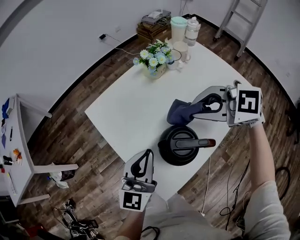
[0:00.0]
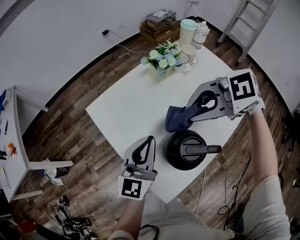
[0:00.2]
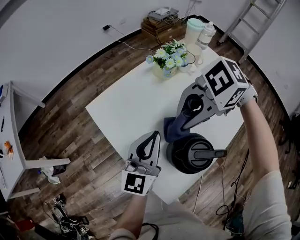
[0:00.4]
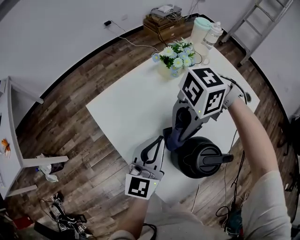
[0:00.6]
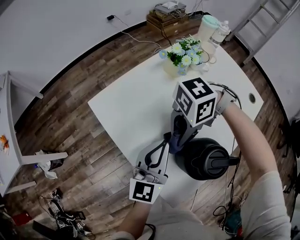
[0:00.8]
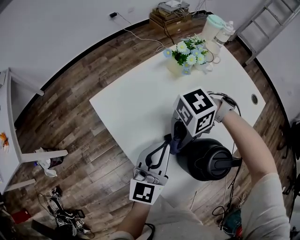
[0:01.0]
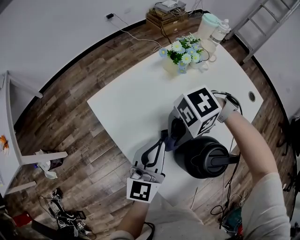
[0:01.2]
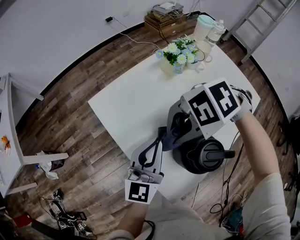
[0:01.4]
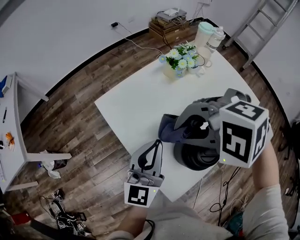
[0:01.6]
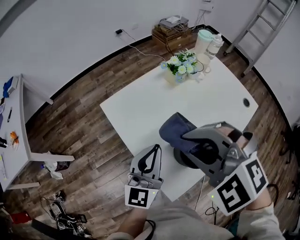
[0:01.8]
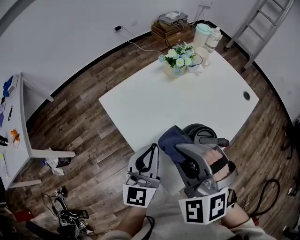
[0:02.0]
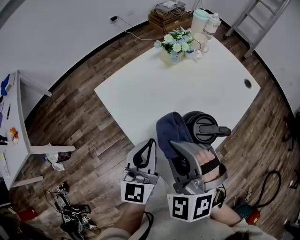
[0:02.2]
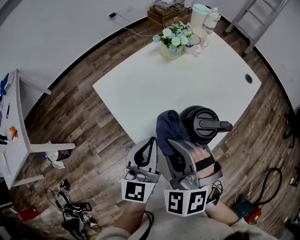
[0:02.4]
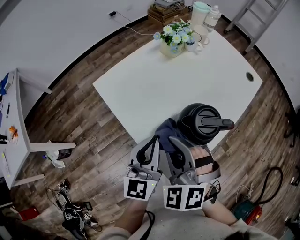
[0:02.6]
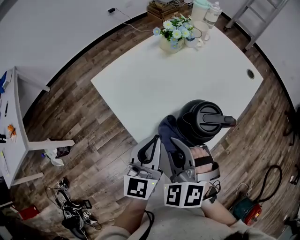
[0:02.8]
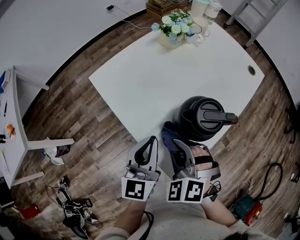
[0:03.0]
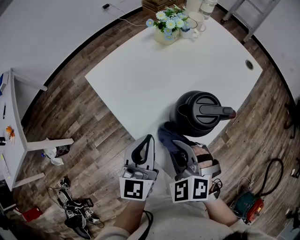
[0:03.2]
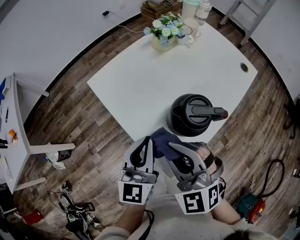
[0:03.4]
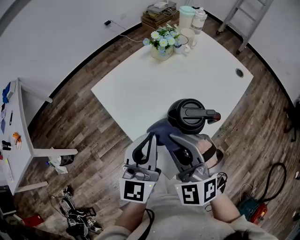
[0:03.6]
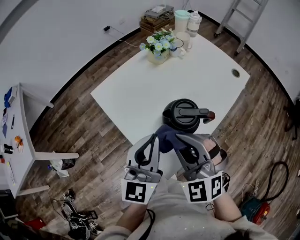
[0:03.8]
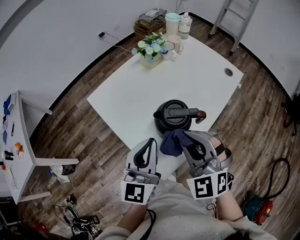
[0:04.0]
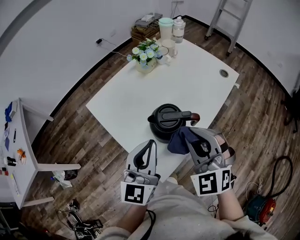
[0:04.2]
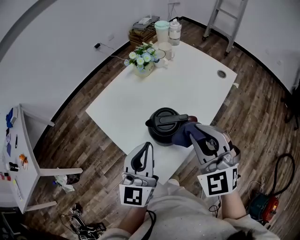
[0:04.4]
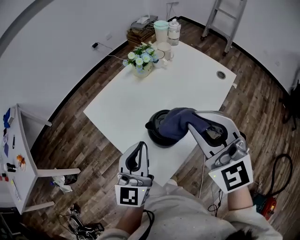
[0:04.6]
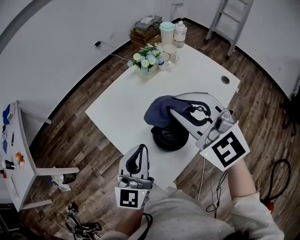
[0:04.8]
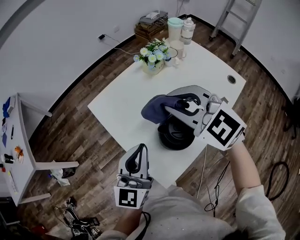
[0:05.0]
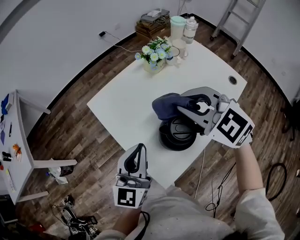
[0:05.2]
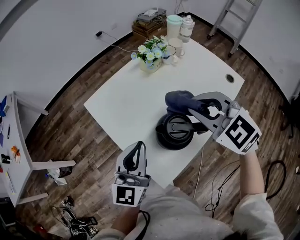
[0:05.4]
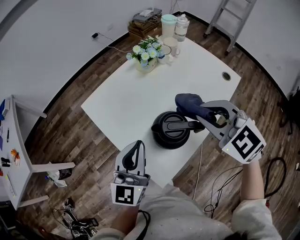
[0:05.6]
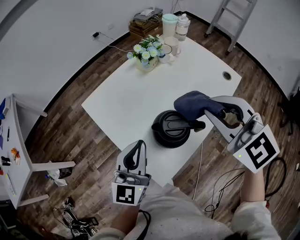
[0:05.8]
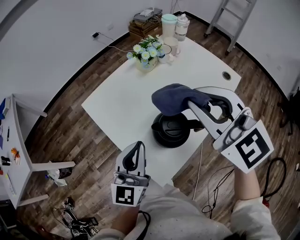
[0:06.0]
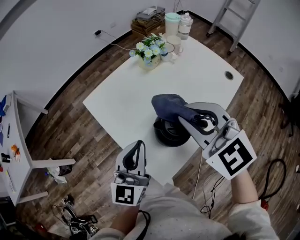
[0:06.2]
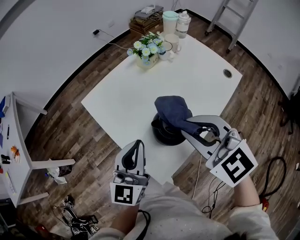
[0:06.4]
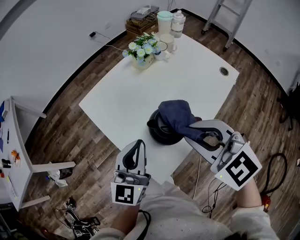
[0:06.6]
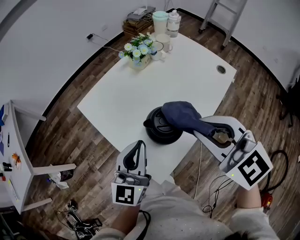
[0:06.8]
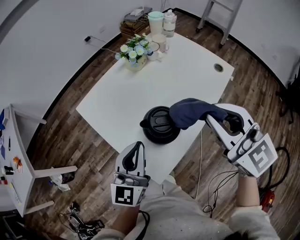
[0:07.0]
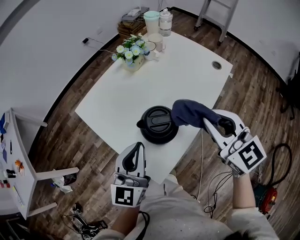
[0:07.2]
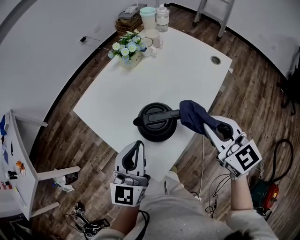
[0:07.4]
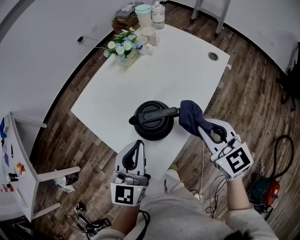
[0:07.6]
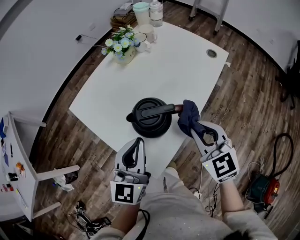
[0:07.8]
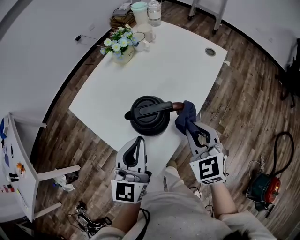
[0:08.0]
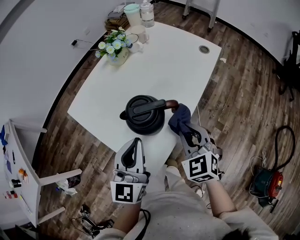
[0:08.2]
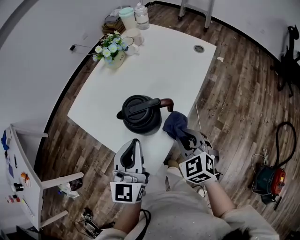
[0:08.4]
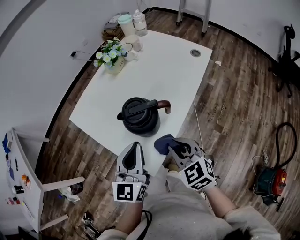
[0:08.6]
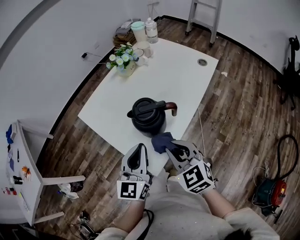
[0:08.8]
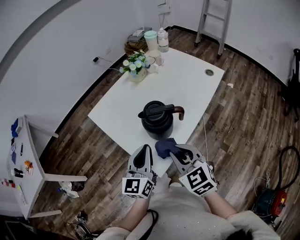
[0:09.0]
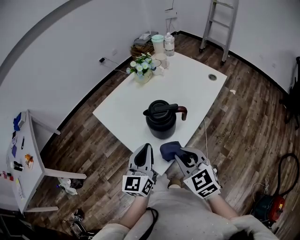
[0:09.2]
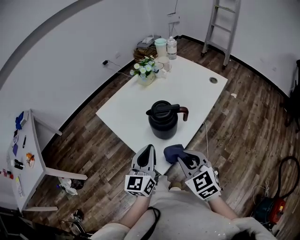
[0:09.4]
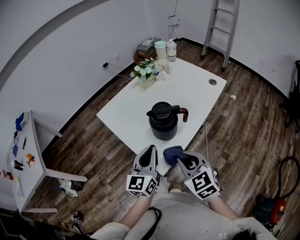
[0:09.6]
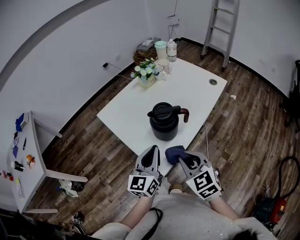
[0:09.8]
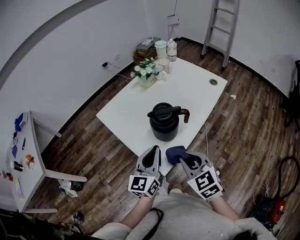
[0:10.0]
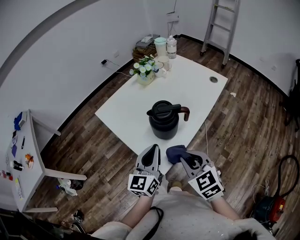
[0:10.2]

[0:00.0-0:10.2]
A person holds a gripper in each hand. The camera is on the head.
0.0 to 1.4 s: The left gripper shifts by some 10 cm, while the right gripper ends up approximately 15 cm from where it was, and swivels some 50 degrees.
1.4 to 3.0 s: The left gripper travels upward and back again, about 5 cm each way; the right gripper changes place by approximately 15 cm, and changes its angle by some 80 degrees.
3.0 to 4.4 s: The left gripper travels upward and to the right by about 15 cm; the right gripper is displaced upward and to the right by some 25 cm, and points its fingers some 30 degrees further upward.
4.4 to 5.8 s: The right gripper travels forward and upward by approximately 10 cm, and swivels approximately 20 degrees, while the left gripper moves roughly 5 cm.
5.8 to 7.2 s: The right gripper travels to the right, downward and backward by approximately 10 cm, and rotates roughly 20 degrees.
7.2 to 8.8 s: The right gripper travels backward, downward and to the left by some 15 cm. The left gripper shifts approximately 5 cm backward.
8.8 to 10.2 s: The right gripper shifts some 5 cm backward.

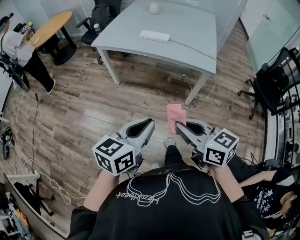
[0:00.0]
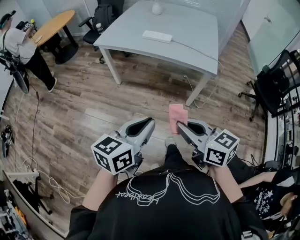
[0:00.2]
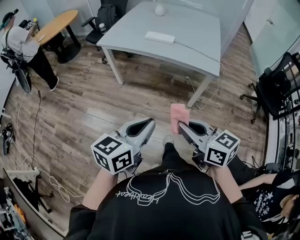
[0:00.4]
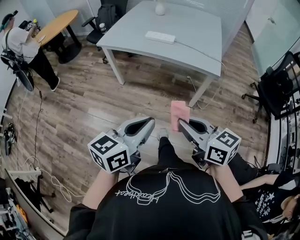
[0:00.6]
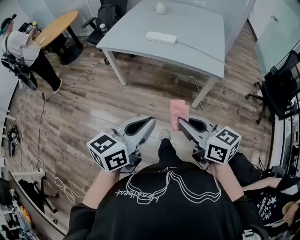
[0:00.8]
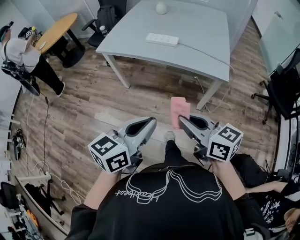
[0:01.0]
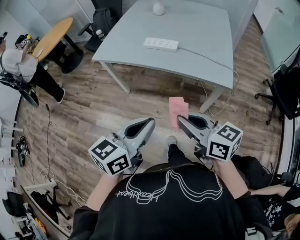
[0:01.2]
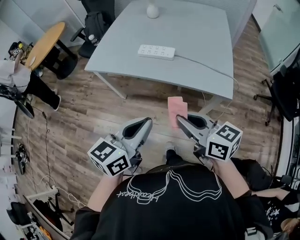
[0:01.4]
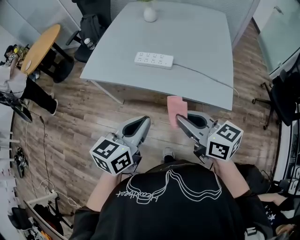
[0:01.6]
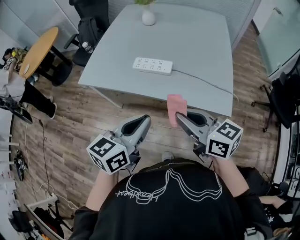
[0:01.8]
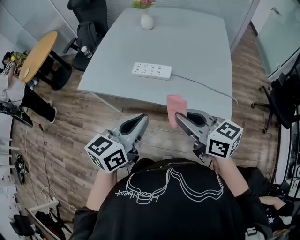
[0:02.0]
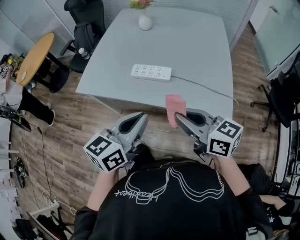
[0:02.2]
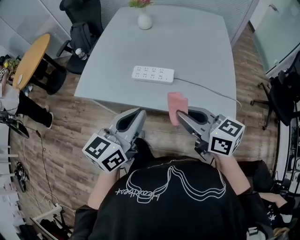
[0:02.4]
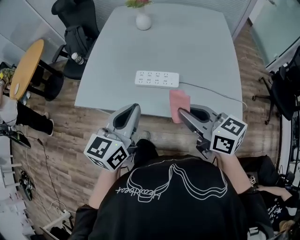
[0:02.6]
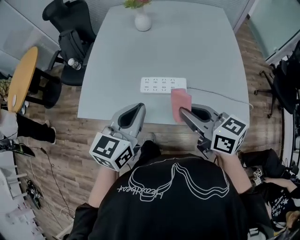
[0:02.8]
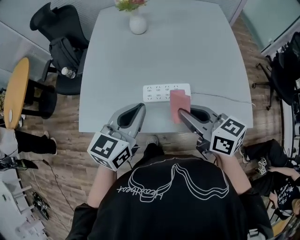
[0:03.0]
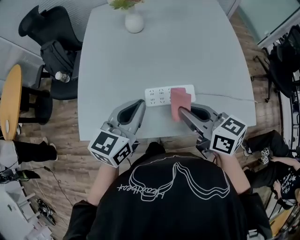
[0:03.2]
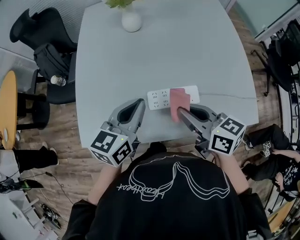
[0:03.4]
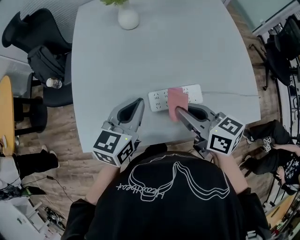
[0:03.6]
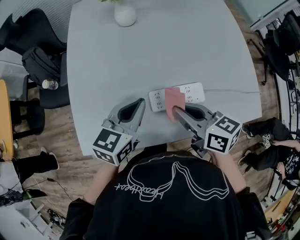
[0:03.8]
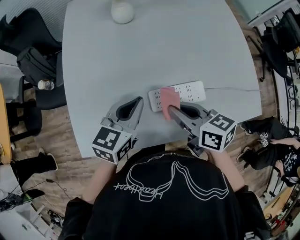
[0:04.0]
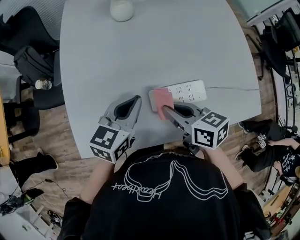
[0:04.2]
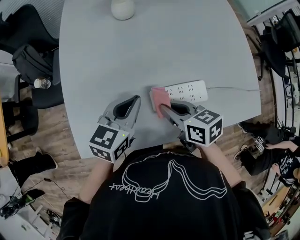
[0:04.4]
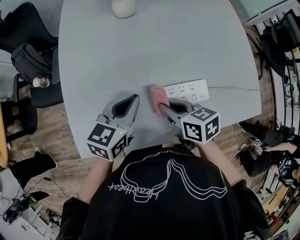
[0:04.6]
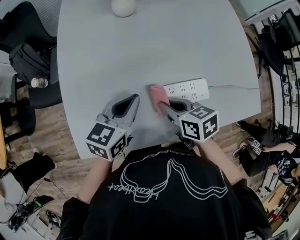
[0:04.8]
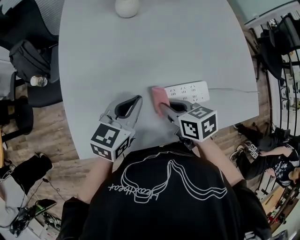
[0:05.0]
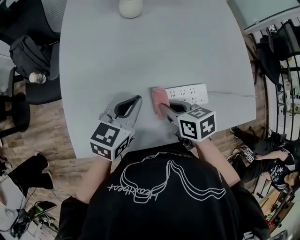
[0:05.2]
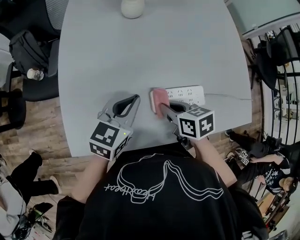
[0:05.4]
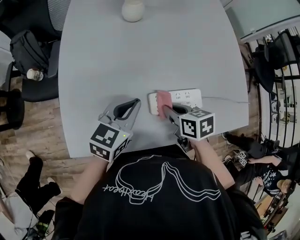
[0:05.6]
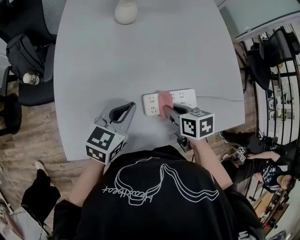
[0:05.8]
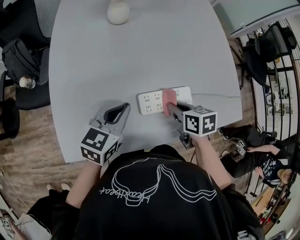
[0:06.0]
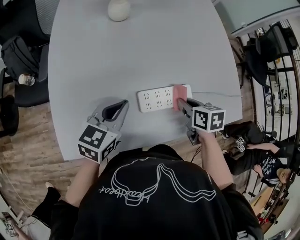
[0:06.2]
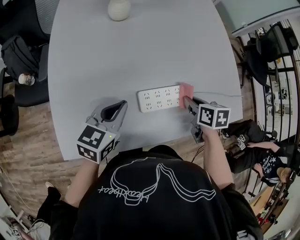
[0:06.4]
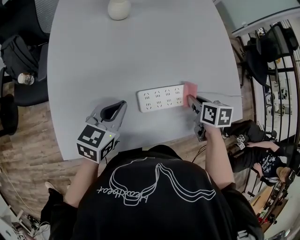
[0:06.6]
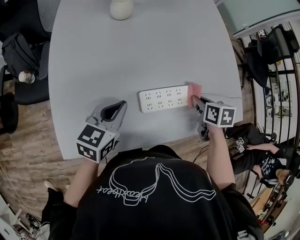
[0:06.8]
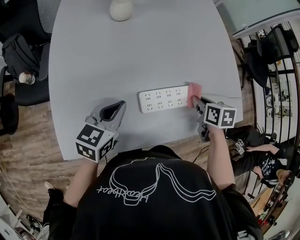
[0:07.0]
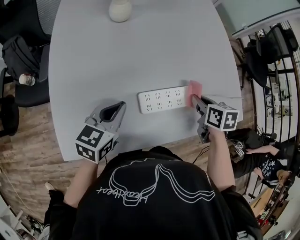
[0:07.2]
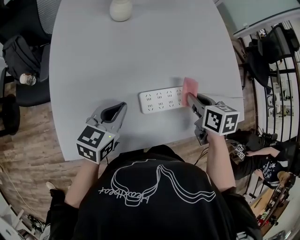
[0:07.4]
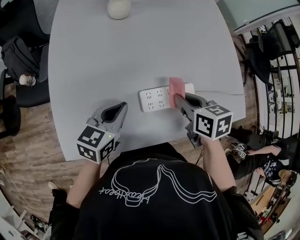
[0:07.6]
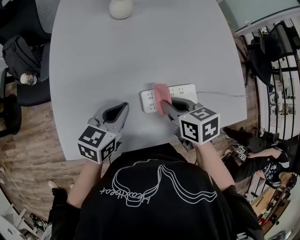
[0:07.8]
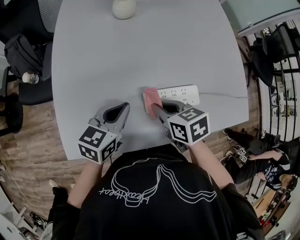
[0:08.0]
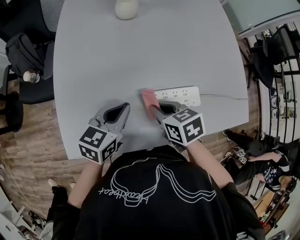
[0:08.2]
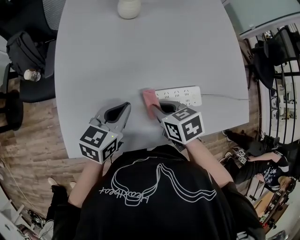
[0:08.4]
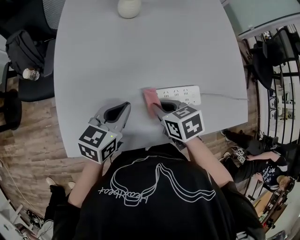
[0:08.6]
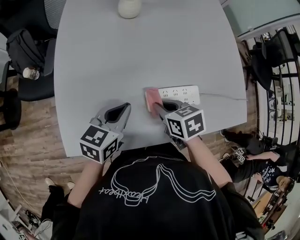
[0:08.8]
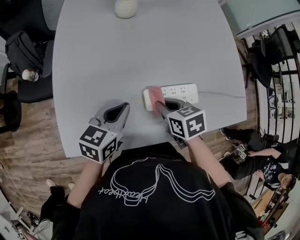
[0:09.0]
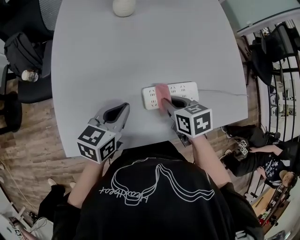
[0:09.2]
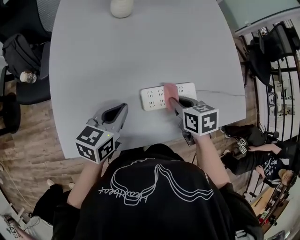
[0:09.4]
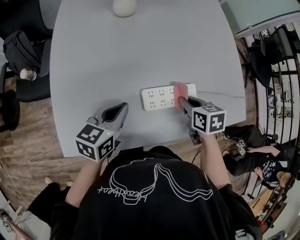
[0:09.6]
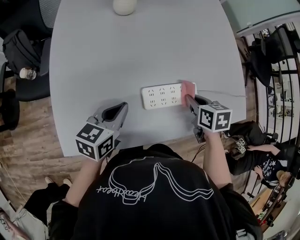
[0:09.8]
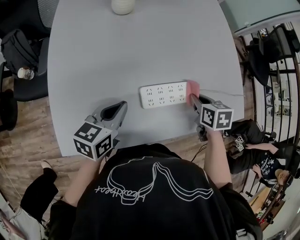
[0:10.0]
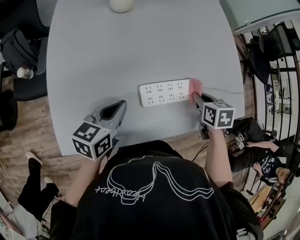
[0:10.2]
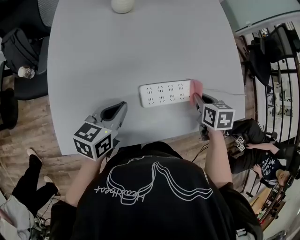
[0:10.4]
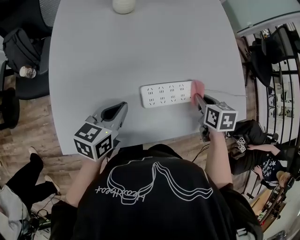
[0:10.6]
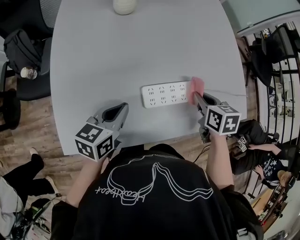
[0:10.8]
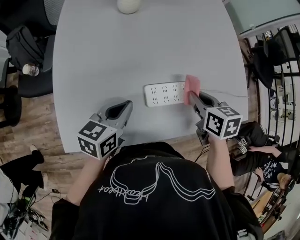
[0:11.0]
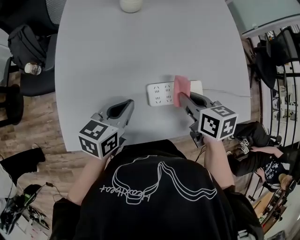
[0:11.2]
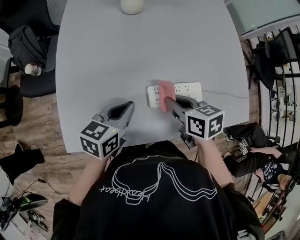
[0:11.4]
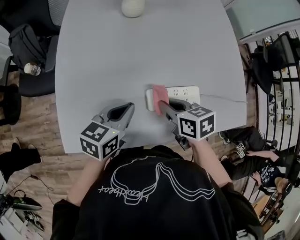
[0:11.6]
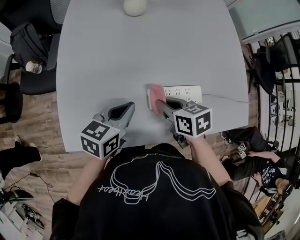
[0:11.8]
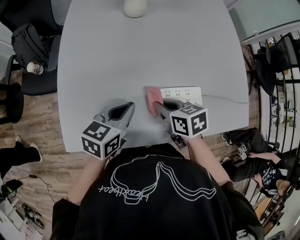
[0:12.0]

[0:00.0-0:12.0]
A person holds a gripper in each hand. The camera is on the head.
0.0 to 1.6 s: Both grippers travel together forward, some 35 cm.
1.6 to 3.0 s: The grippers both shift forward by some 30 cm.
3.0 to 4.4 s: The right gripper shifts some 20 cm downward, forward and to the left, and rotates approximately 20 degrees, while the left gripper is displaced forward, downward and to the left by about 20 cm.
4.4 to 6.0 s: The right gripper heads to the right, covering roughly 10 cm, and changes its angle by approximately 20 degrees.
6.0 to 7.6 s: The right gripper goes roughly 5 cm upward, and travels to the right and back again, approximately 10 cm each way.
7.6 to 9.0 s: The right gripper travels to the left and downward by some 10 cm.
9.0 to 10.4 s: The right gripper heads to the right, covering about 15 cm, and turns by approximately 20 degrees.
10.4 to 12.0 s: The right gripper is displaced to the left by about 20 cm, and changes its angle by approximately 30 degrees.

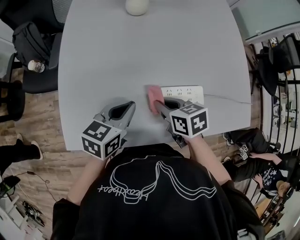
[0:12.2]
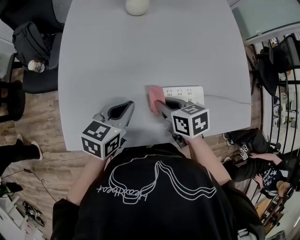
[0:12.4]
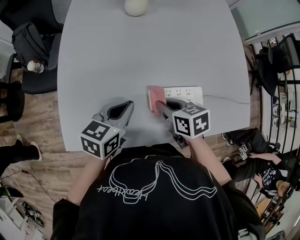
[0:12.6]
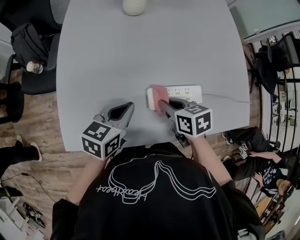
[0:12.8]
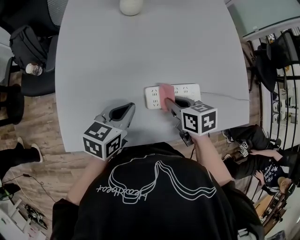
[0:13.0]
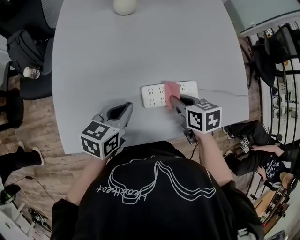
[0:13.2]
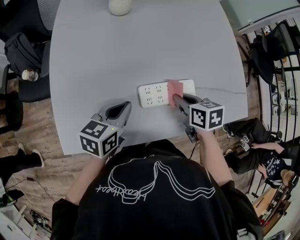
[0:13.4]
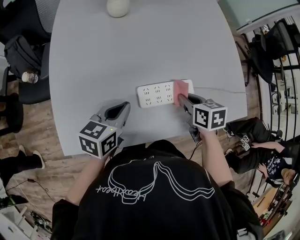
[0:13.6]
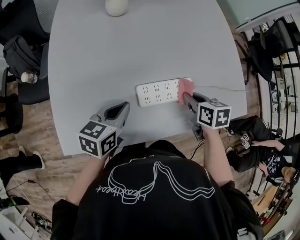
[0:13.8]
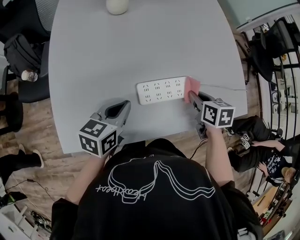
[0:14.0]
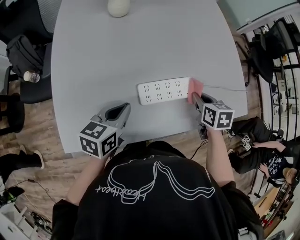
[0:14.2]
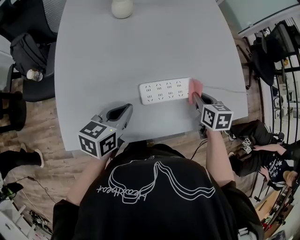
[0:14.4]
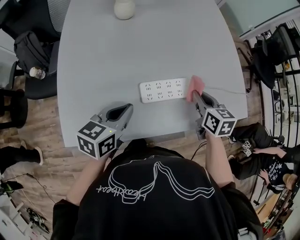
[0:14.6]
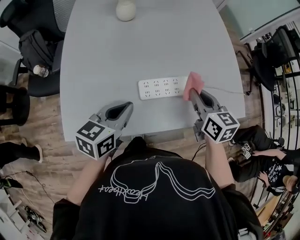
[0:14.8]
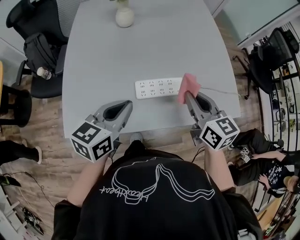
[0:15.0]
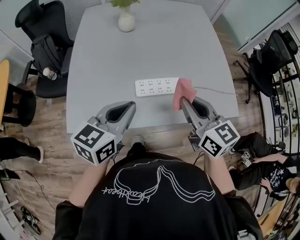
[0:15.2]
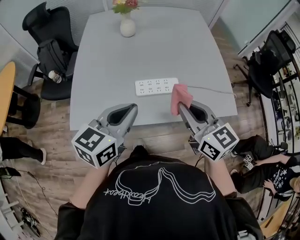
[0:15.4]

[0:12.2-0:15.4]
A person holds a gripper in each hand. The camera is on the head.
12.2 to 13.8 s: The right gripper shifts roughly 15 cm to the right, and swivels about 20 degrees.
13.8 to 15.4 s: The right gripper travels upward and backward by about 30 cm, and tips its fingers upward by some 40 degrees; the left gripper heads upward, backward and to the right, covering about 25 cm, and turns by about 20 degrees.
